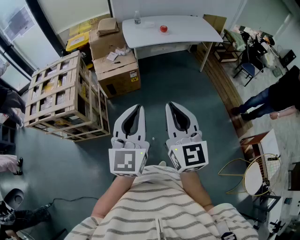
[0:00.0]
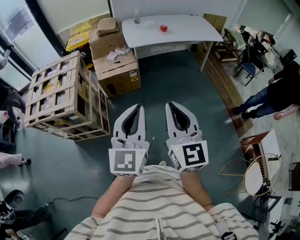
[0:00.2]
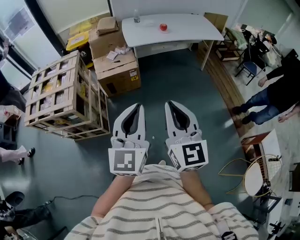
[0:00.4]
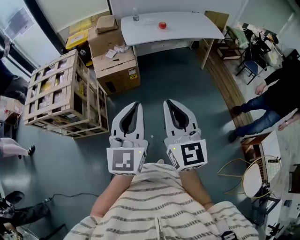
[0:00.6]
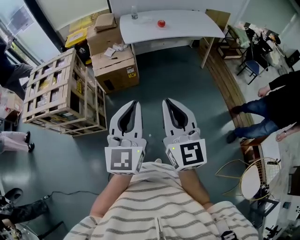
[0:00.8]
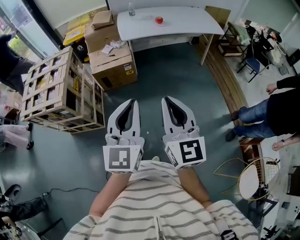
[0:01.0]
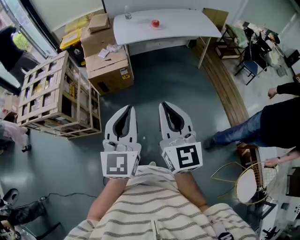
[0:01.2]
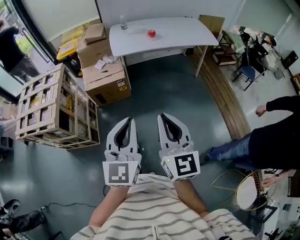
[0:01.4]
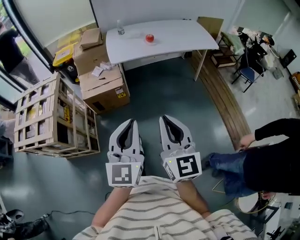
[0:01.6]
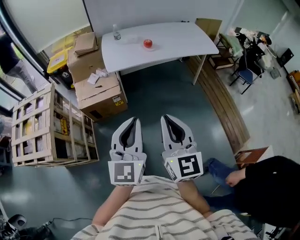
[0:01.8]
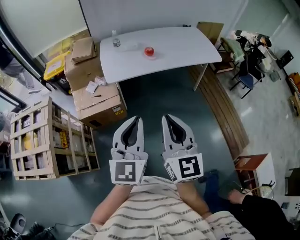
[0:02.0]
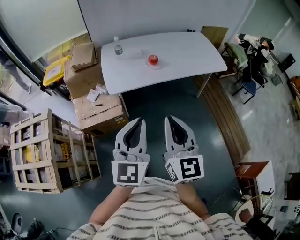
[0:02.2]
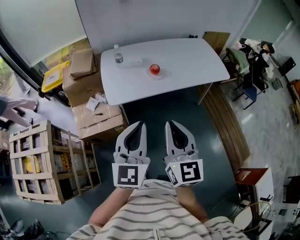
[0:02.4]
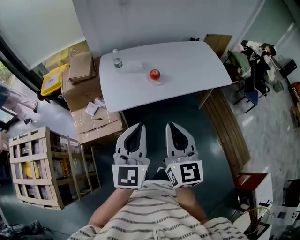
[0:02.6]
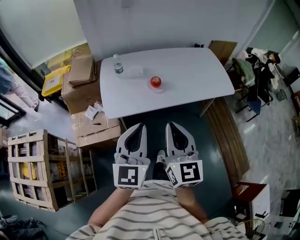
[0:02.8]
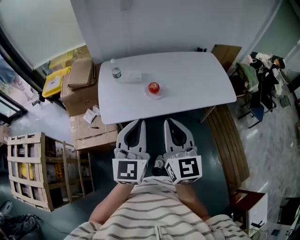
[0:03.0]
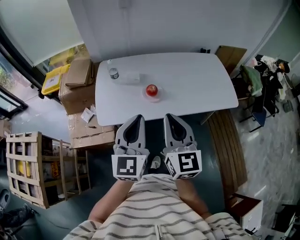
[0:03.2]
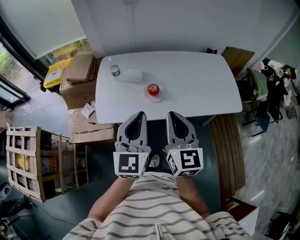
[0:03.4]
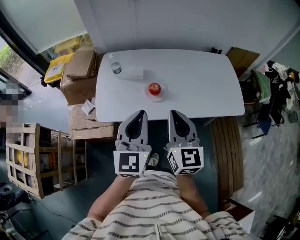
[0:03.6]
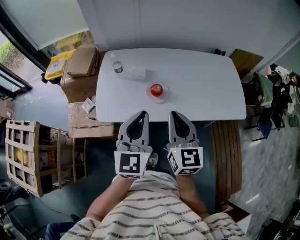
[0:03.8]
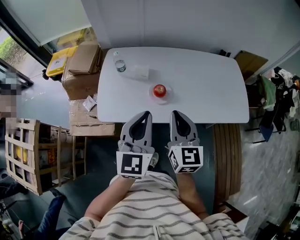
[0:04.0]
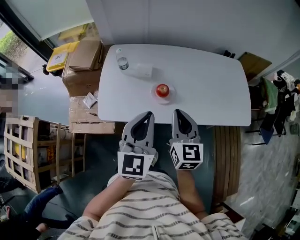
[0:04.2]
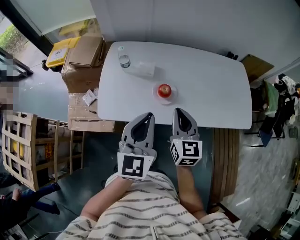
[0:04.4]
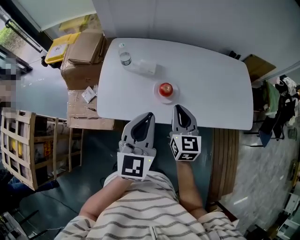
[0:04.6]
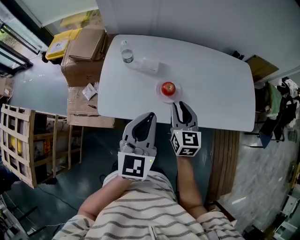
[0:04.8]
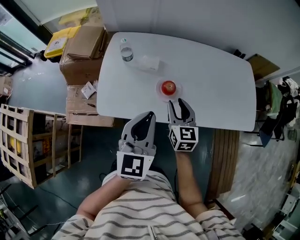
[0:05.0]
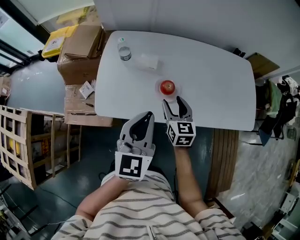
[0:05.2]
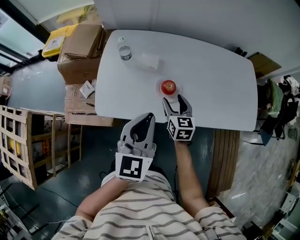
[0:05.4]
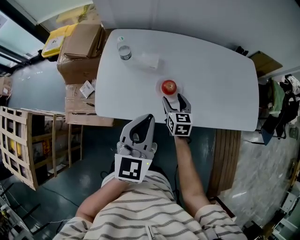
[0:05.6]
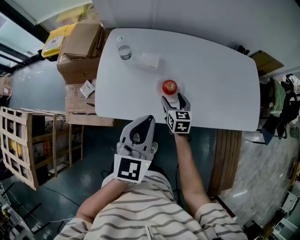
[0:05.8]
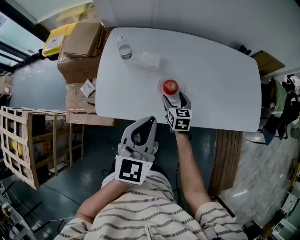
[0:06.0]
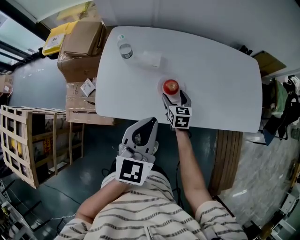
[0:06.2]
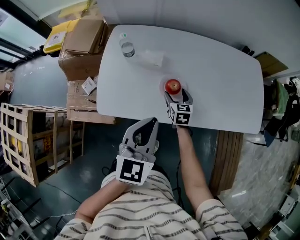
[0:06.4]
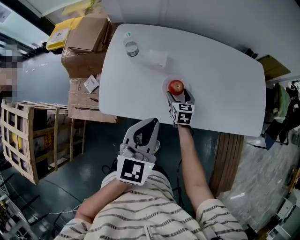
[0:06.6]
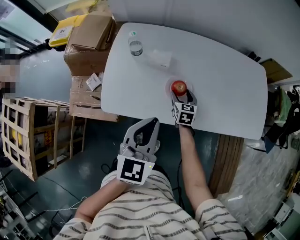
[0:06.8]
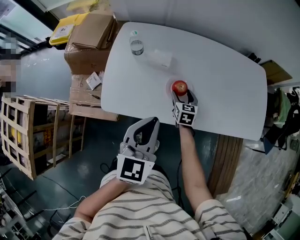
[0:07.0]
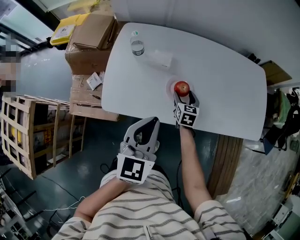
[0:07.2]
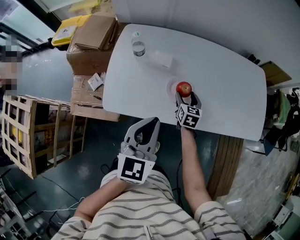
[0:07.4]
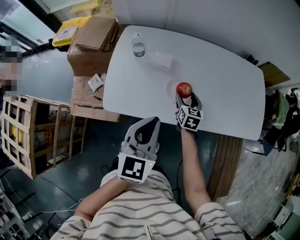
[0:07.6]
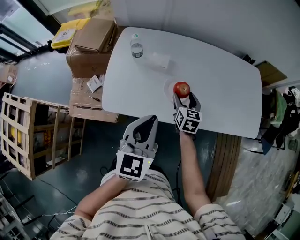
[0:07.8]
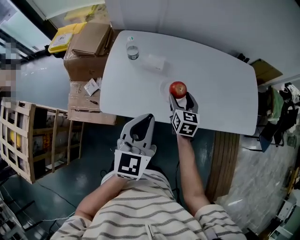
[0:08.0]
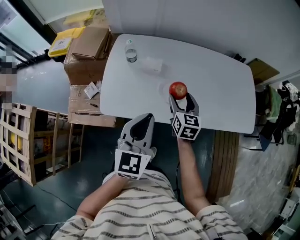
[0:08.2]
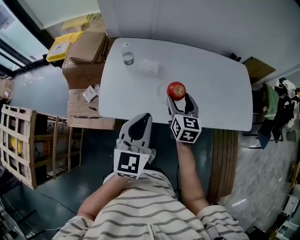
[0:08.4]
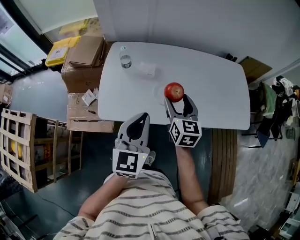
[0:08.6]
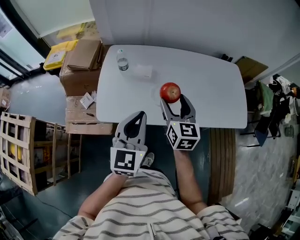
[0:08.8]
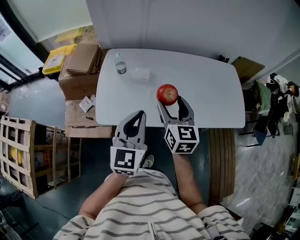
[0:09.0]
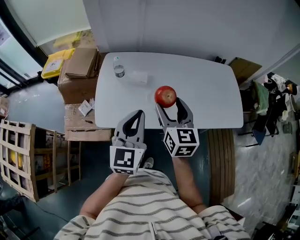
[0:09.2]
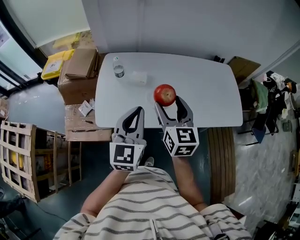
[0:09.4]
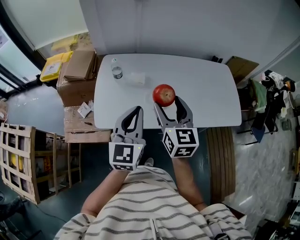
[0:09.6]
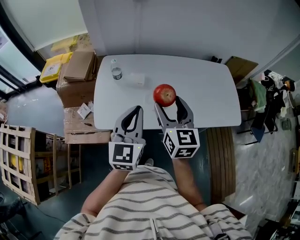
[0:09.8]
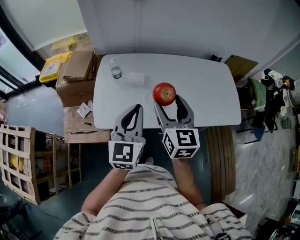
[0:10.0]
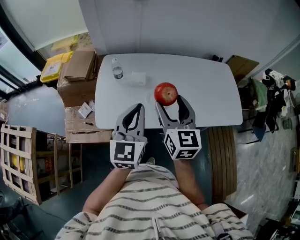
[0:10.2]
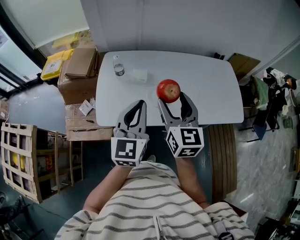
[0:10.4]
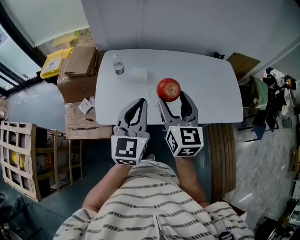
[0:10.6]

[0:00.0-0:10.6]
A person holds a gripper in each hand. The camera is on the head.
0:00.0 to 0:01.6: Both grippers travel together forward and to the right, approximately 20 cm.
0:01.6 to 0:03.0: Both grippers are carried forward, about 50 cm.
0:03.0 to 0:04.6: The right gripper goes roughly 30 cm forward and downward. The left gripper shifts approximately 20 cm forward and downward.
0:04.6 to 0:06.0: The left gripper changes place by approximately 5 cm. The right gripper travels downward and forward by approximately 20 cm, and opens.
0:06.0 to 0:07.6: The grippers make only small movements.
0:07.6 to 0:09.0: The right gripper goes approximately 25 cm upward; the left gripper shifts some 5 cm upward.
0:09.0 to 0:10.6: The right gripper moves upward, approximately 5 cm.

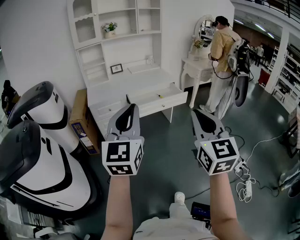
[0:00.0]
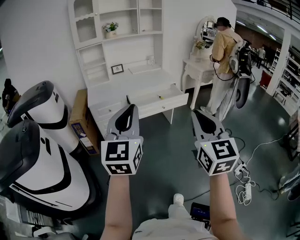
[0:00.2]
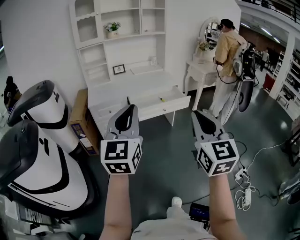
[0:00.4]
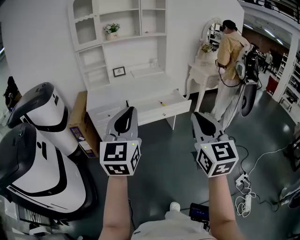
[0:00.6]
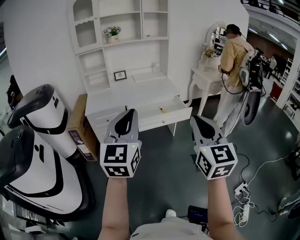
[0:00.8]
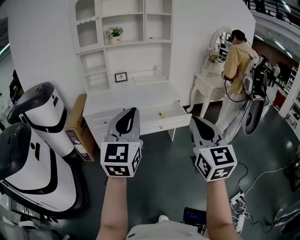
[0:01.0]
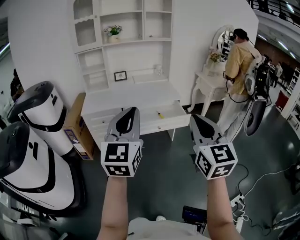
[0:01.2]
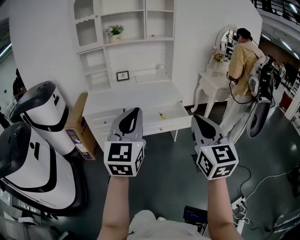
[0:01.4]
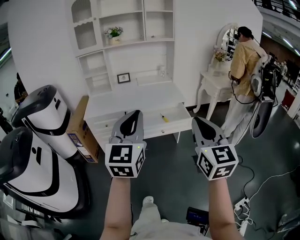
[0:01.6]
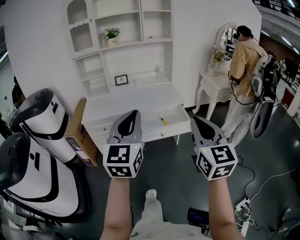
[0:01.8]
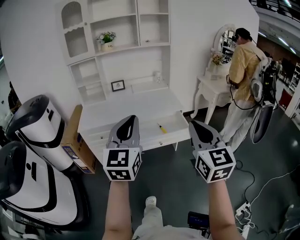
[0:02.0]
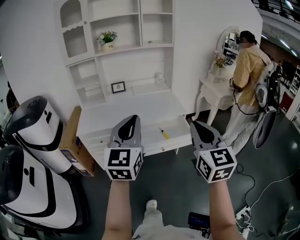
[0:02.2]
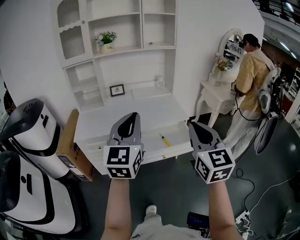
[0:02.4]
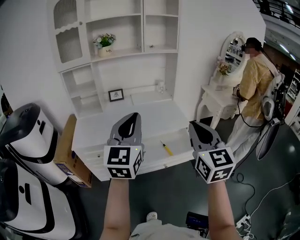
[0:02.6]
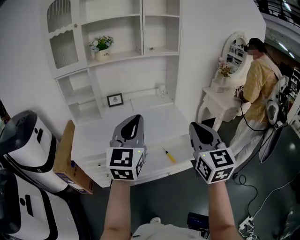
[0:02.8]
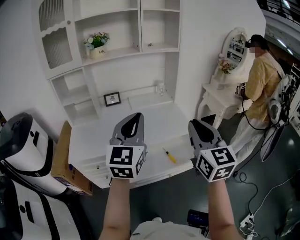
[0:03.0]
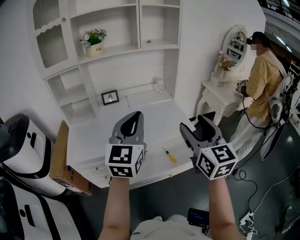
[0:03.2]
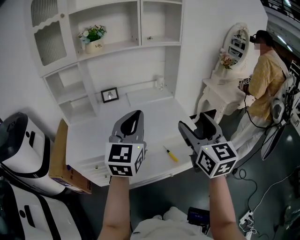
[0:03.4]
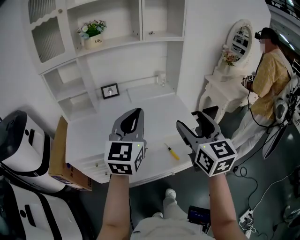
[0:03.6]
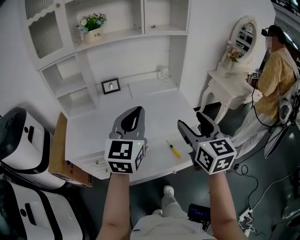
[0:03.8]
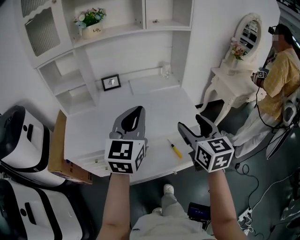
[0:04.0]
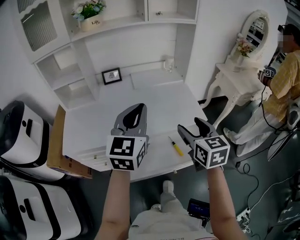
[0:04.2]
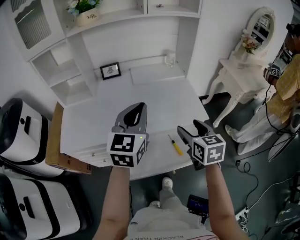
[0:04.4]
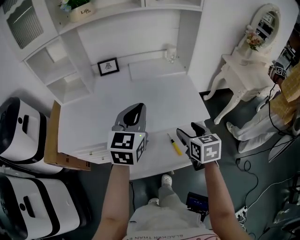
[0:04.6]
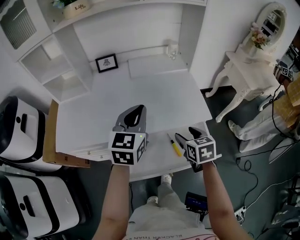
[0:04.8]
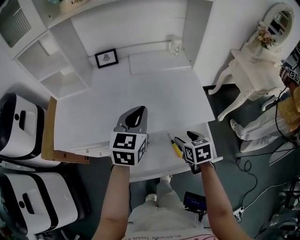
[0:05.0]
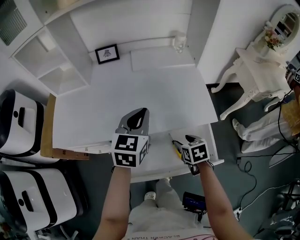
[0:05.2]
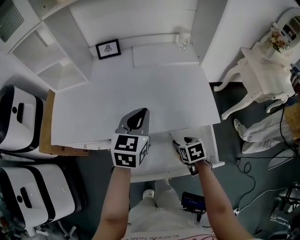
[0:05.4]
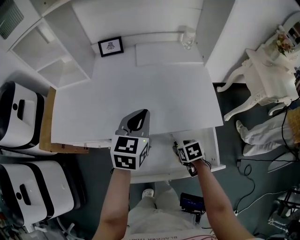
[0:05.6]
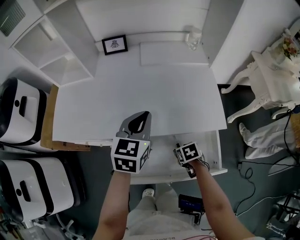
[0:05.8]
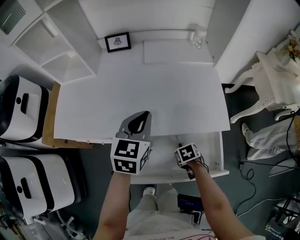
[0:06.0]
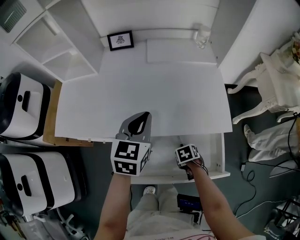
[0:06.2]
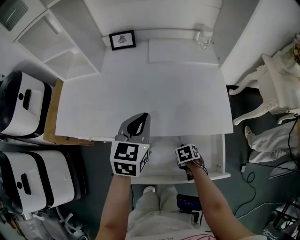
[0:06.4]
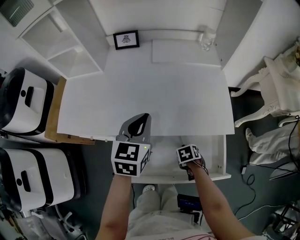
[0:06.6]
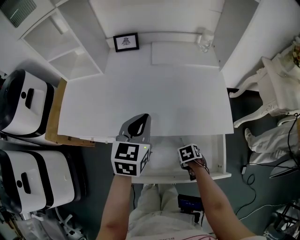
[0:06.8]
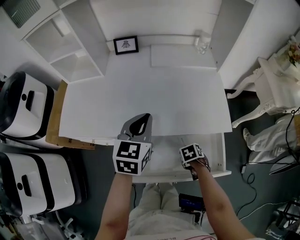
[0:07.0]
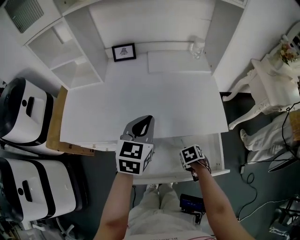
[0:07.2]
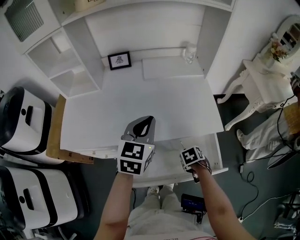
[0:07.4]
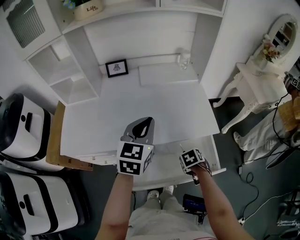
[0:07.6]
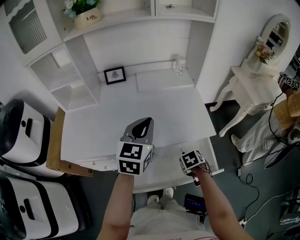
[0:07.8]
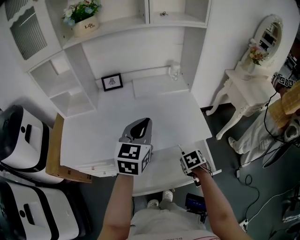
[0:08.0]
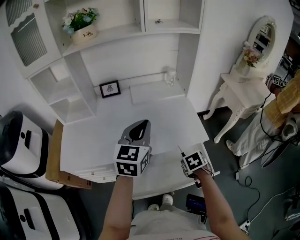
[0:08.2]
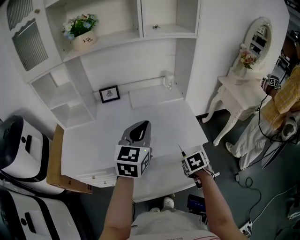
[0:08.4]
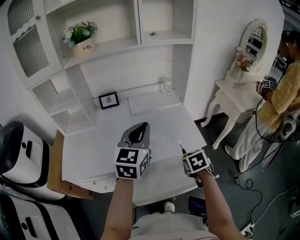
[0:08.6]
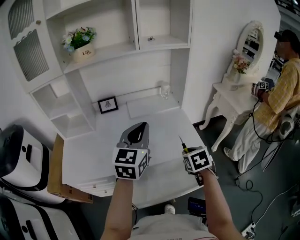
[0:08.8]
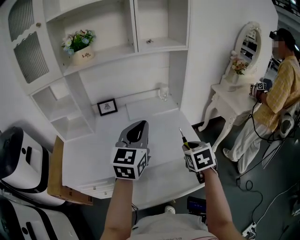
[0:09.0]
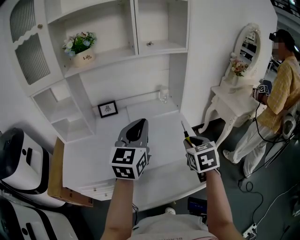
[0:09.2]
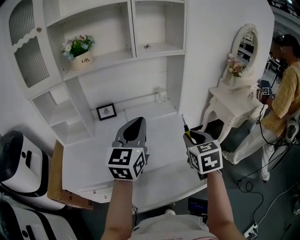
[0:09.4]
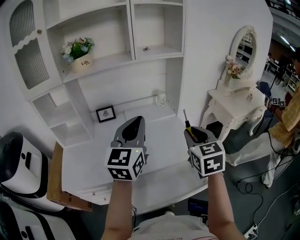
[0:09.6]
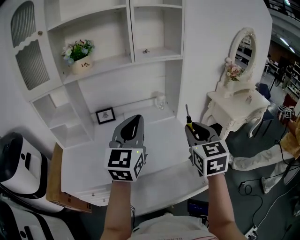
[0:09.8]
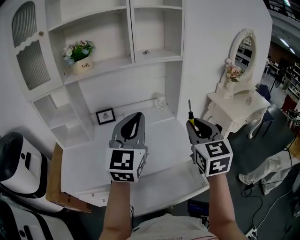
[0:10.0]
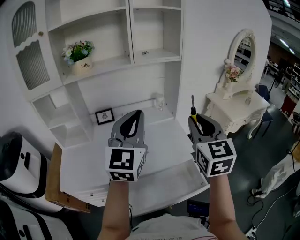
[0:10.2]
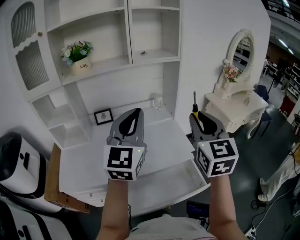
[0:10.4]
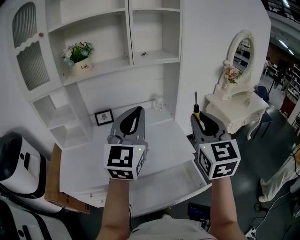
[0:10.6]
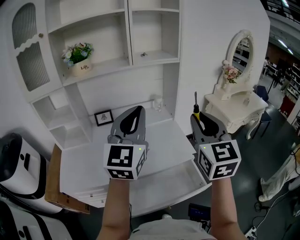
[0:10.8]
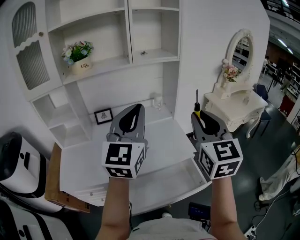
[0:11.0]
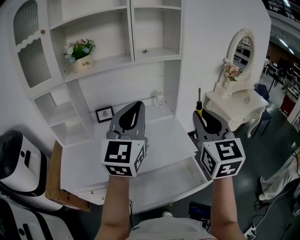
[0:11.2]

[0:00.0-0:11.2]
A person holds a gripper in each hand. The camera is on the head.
0:00.0 to 0:01.6: Both grippers move forward and to the right, approximately 30 cm.
0:01.6 to 0:03.2: Both grippers move forward, approximately 40 cm. The right gripper opens.
0:03.2 to 0:04.8: Both grippers move downward and forward, about 30 cm. The right gripper angles its fingers downward, by about 40 degrees, while the left gripper rotates approximately 20 degrees.
0:04.8 to 0:06.4: The left gripper moves downward, about 10 cm, while the right gripper is displaced downward by about 25 cm, angles its fingers downward, by approximately 40 degrees, and closes its fingers.
0:06.4 to 0:08.0: Both grippers travel together upward, about 15 cm.
0:08.0 to 0:09.6: The right gripper shifts approximately 35 cm upward, and tips its fingers upward by approximately 50 degrees; the left gripper heads upward, covering roughly 15 cm.
0:09.6 to 0:11.2: The left gripper is displaced upward by roughly 10 cm; the right gripper moves upward, approximately 10 cm, and turns by about 20 degrees.

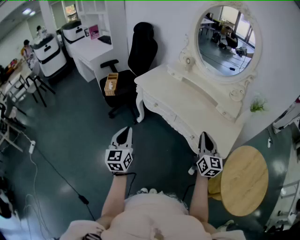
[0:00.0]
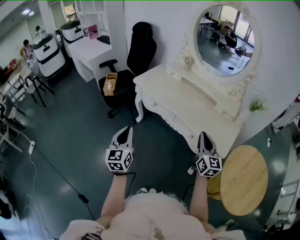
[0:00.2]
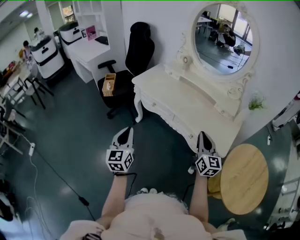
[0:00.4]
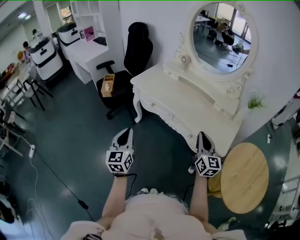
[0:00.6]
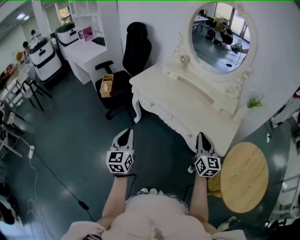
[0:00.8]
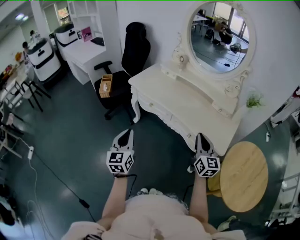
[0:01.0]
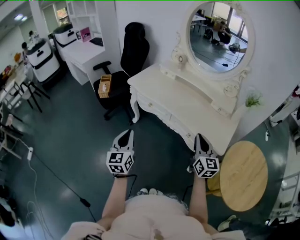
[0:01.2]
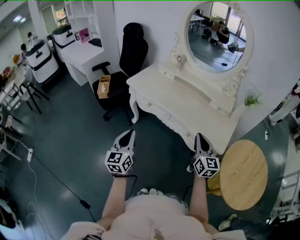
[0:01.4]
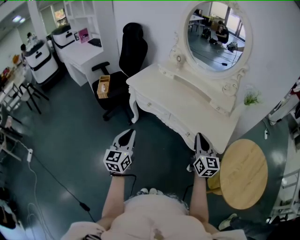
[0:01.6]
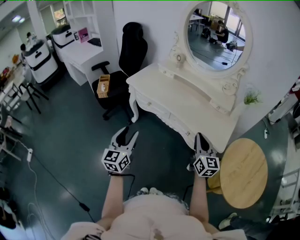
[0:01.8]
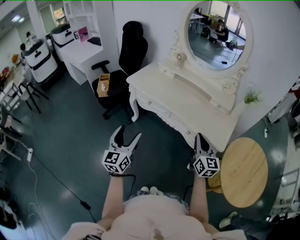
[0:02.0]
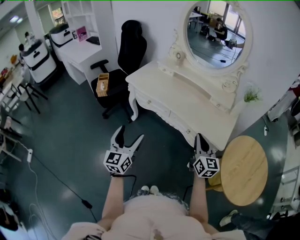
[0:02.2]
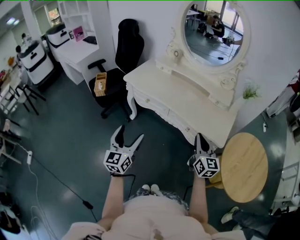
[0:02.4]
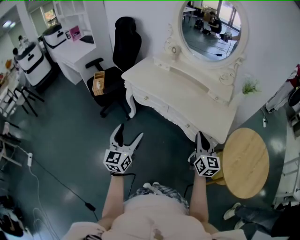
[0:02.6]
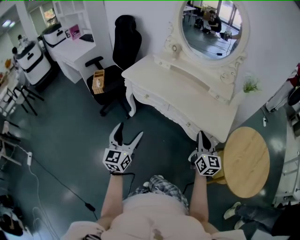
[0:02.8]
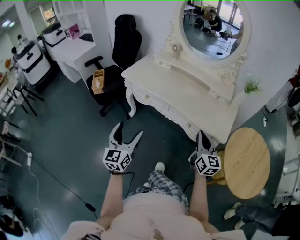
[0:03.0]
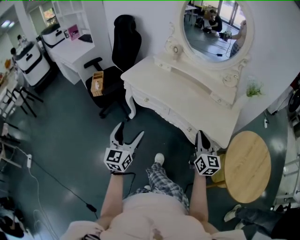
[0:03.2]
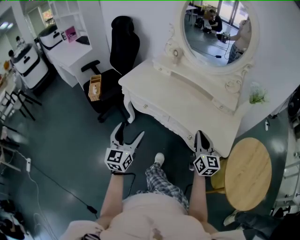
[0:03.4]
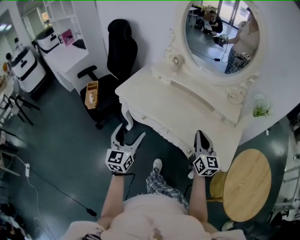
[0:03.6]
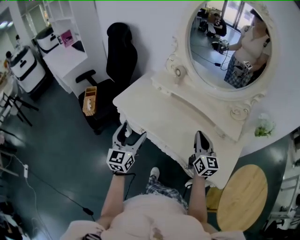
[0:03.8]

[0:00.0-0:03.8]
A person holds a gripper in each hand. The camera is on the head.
0:00.0 to 0:01.2: The grippers make only small movements.
0:01.2 to 0:02.6: The left gripper opens.
0:02.6 to 0:03.8: The grippers both shift forward by about 35 cm.
